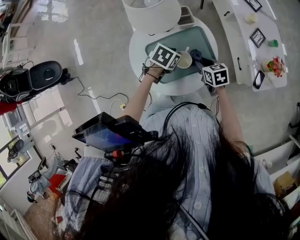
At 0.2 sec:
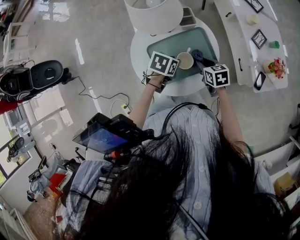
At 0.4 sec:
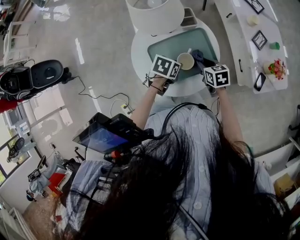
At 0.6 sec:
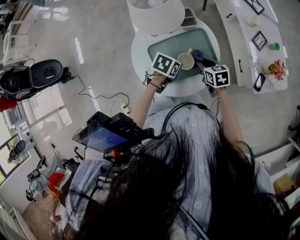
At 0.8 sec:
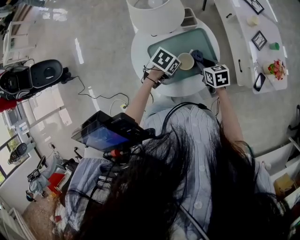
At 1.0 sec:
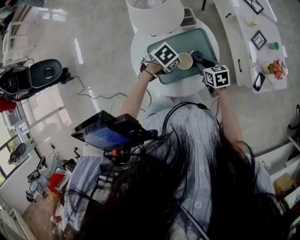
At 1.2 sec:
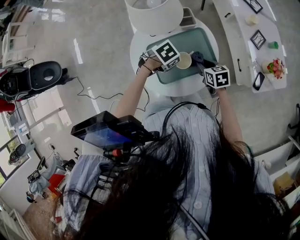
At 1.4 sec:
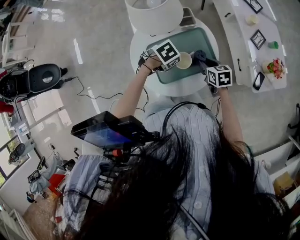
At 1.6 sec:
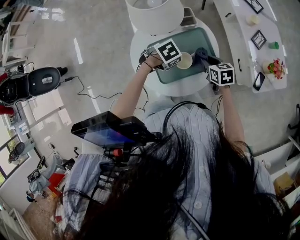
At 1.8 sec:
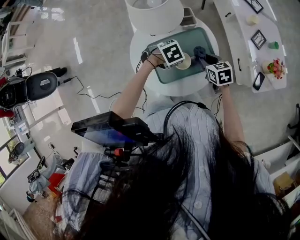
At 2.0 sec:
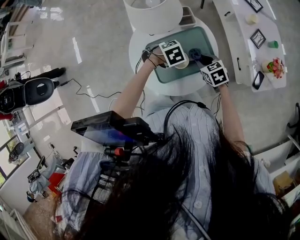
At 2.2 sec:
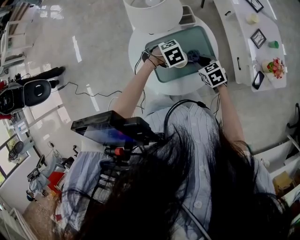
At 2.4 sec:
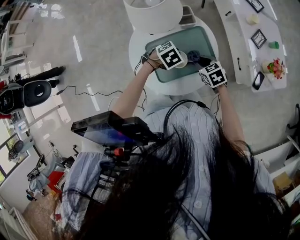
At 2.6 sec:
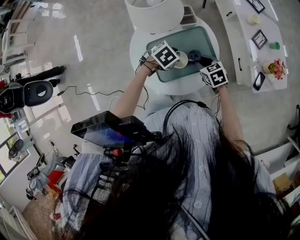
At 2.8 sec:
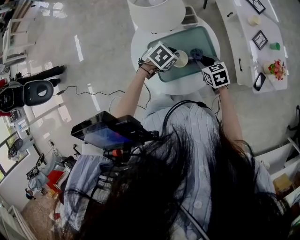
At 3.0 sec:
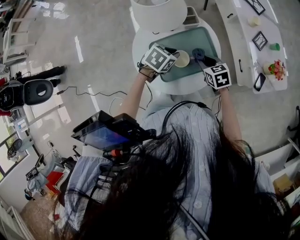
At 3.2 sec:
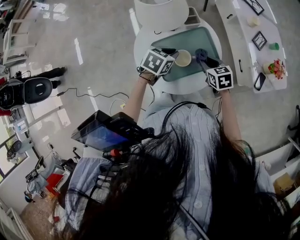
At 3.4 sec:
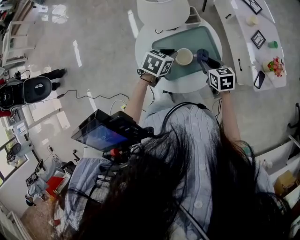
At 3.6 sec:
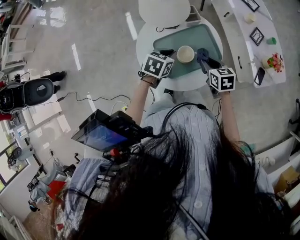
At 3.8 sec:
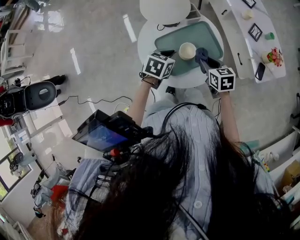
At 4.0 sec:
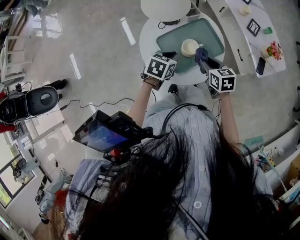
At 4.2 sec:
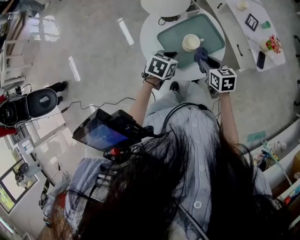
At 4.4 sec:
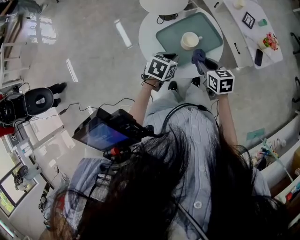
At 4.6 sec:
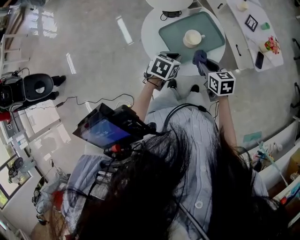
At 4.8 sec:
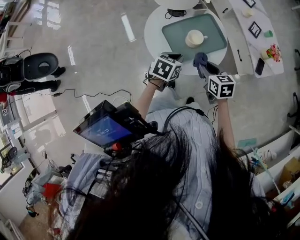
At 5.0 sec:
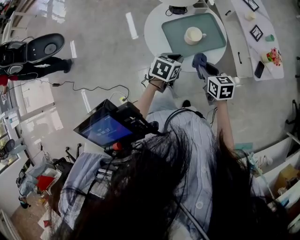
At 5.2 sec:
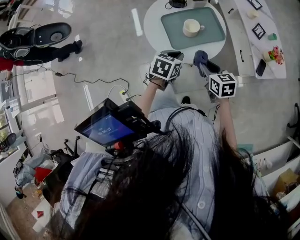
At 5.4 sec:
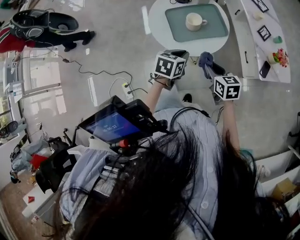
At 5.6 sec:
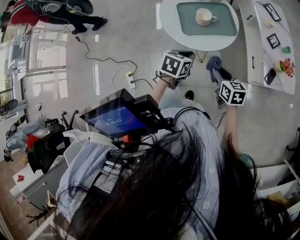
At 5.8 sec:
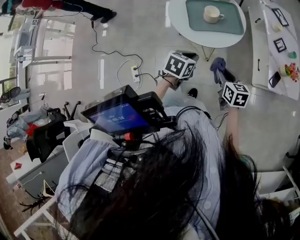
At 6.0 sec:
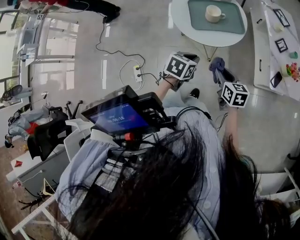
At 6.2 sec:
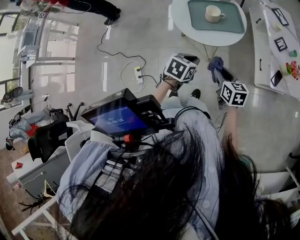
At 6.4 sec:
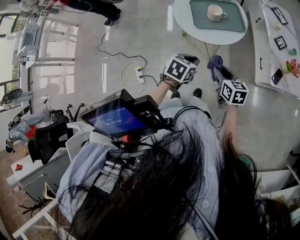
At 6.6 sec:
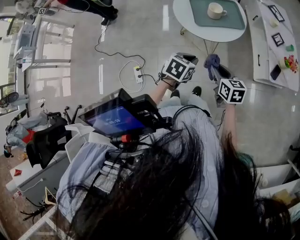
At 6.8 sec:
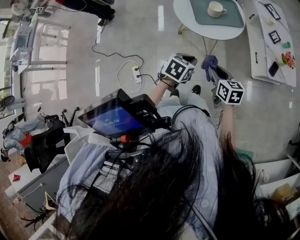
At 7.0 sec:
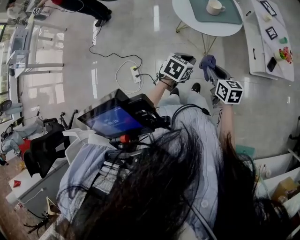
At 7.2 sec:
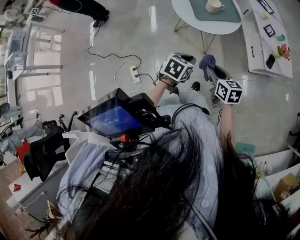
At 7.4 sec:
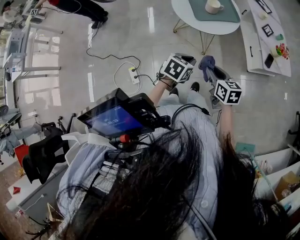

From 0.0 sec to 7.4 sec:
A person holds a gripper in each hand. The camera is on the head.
From 0.0 sec to 1.4 sec: The left gripper swivels roughly 30 degrees.
From 1.4 sec to 3.0 sec: The left gripper turns by about 20 degrees.
From 3.0 sec to 4.4 sec: The grippers both shift backward by roughly 10 cm. The right gripper turns by roughly 20 degrees.
From 4.4 sec to 6.0 sec: The two grippers go about 25 cm backward and to the right. The left gripper swivels some 30 degrees.
From 6.0 sec to 7.4 sec: Both grippers move backward and to the left, about 15 cm.

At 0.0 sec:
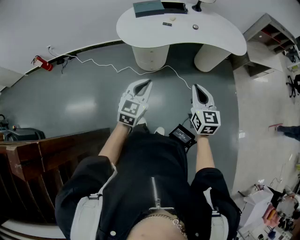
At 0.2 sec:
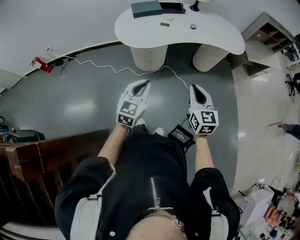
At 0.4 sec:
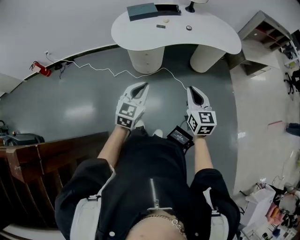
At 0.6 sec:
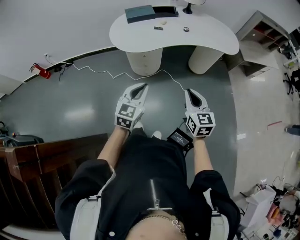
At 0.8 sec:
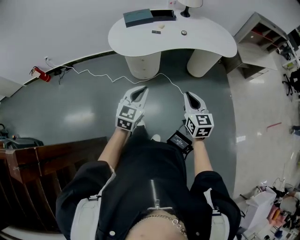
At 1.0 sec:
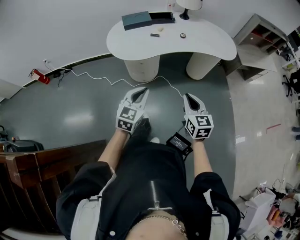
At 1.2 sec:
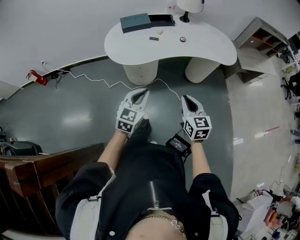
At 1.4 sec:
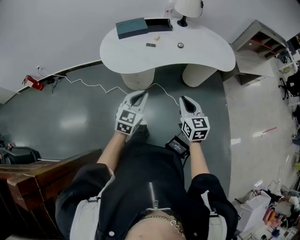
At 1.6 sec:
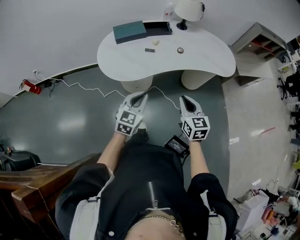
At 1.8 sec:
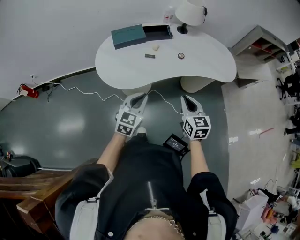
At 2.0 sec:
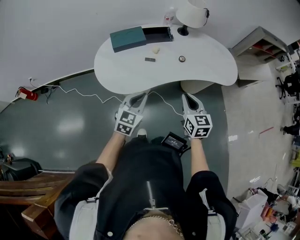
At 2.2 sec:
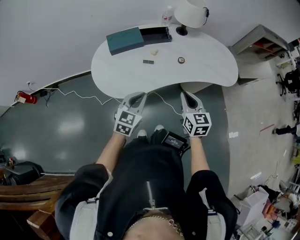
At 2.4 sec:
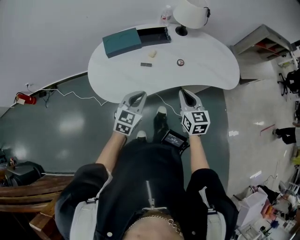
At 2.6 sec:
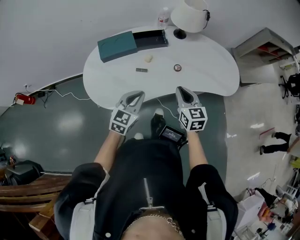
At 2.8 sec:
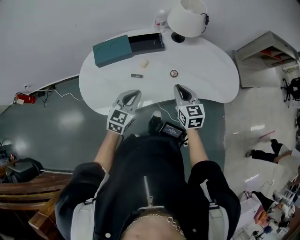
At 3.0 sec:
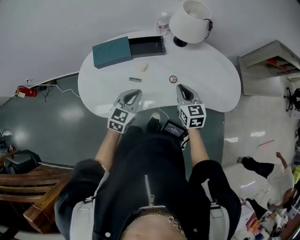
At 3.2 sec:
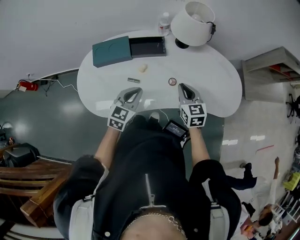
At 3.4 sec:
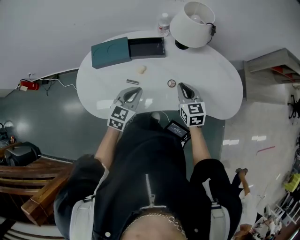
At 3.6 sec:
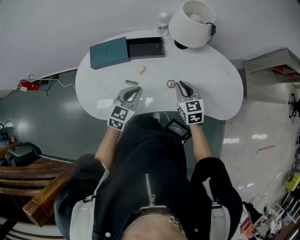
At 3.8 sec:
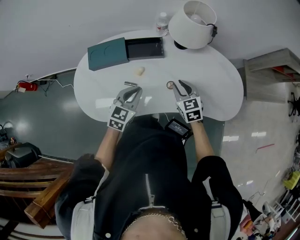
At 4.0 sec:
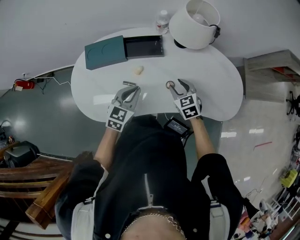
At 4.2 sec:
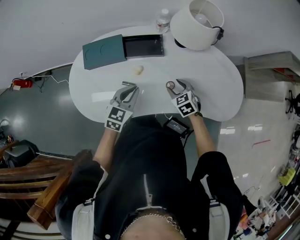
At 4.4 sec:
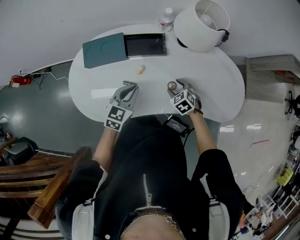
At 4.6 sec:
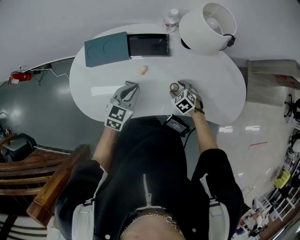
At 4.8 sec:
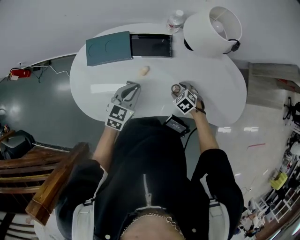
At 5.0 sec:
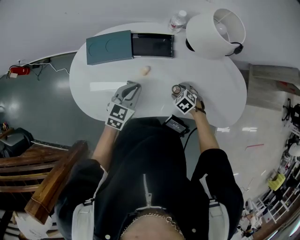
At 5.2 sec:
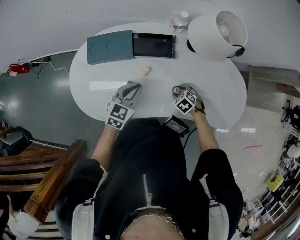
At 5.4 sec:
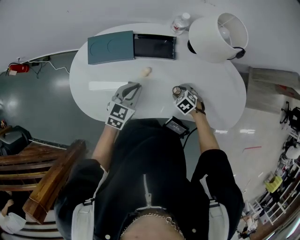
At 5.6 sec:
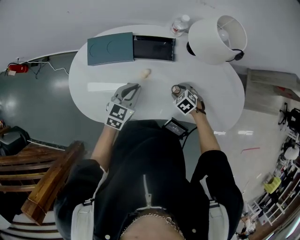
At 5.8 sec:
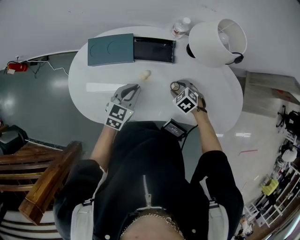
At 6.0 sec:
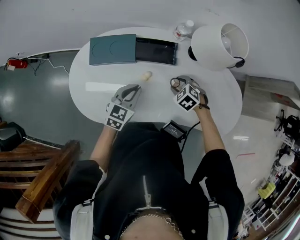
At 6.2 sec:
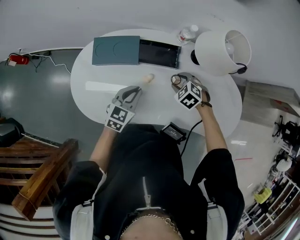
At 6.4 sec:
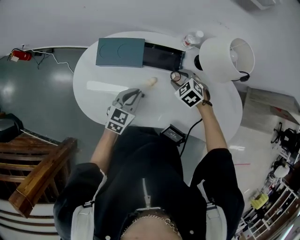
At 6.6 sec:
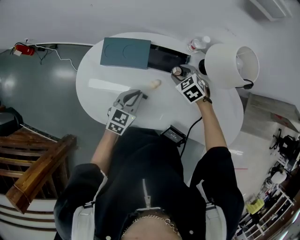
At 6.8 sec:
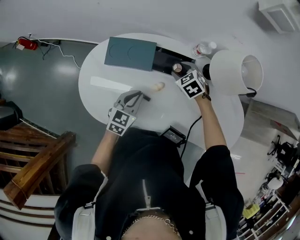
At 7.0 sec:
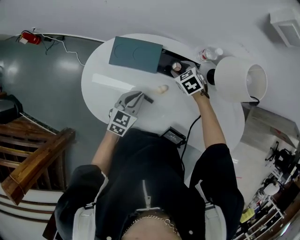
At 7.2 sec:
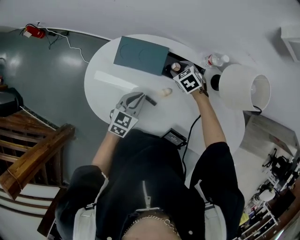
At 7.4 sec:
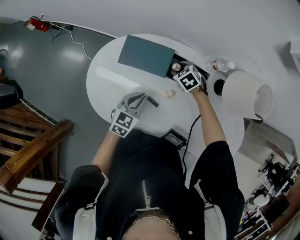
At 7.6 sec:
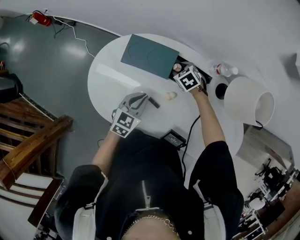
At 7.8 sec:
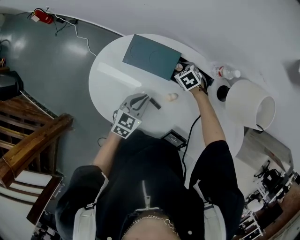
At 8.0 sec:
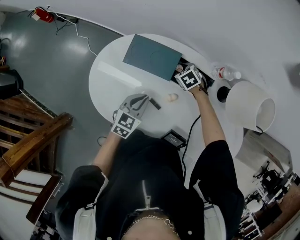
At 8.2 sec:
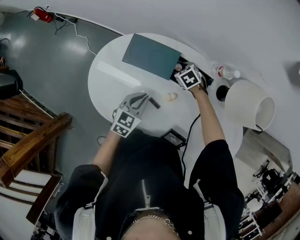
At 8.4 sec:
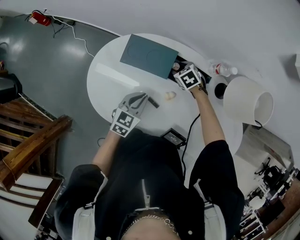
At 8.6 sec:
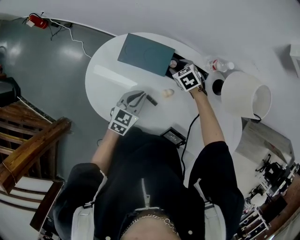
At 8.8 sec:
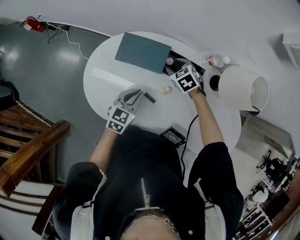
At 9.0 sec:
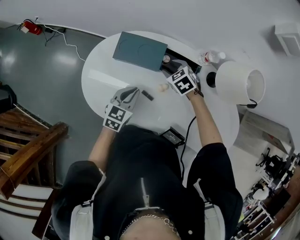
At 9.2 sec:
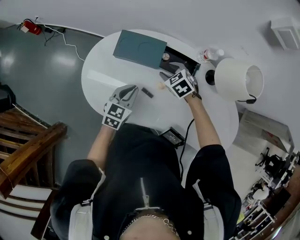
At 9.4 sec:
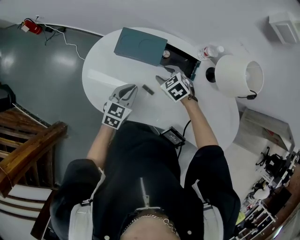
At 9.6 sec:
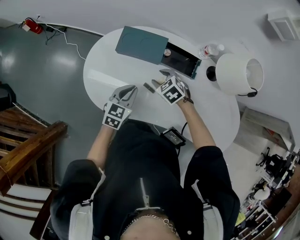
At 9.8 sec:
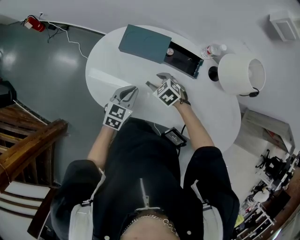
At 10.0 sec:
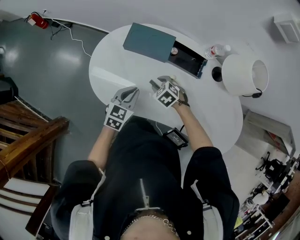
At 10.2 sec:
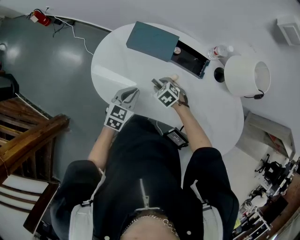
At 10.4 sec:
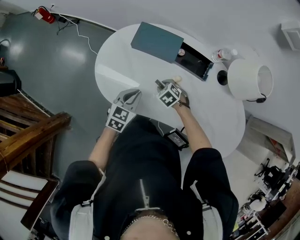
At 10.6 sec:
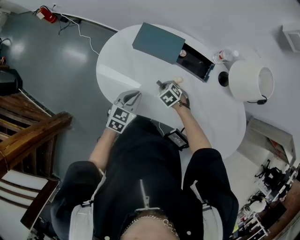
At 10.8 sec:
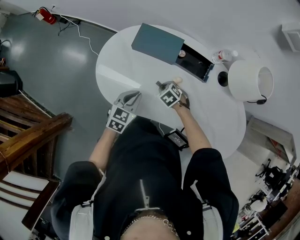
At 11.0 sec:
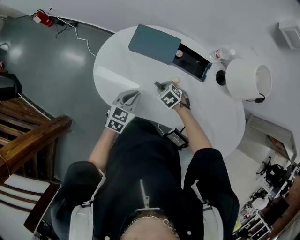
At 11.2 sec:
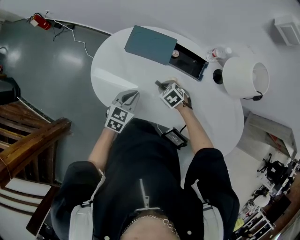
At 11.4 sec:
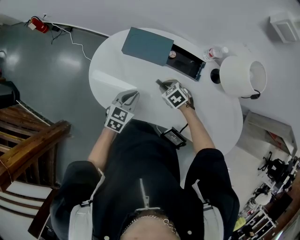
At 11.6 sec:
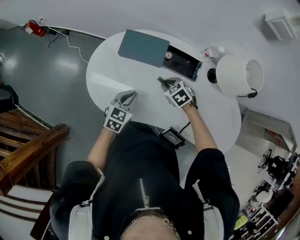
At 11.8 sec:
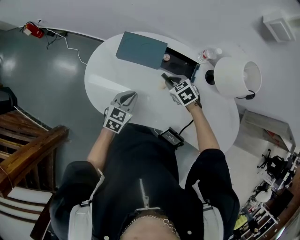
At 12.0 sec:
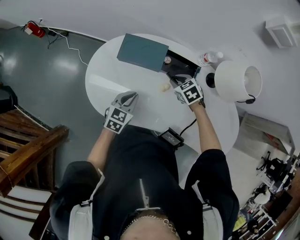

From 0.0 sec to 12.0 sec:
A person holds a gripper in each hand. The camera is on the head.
From 0.0 sec to 1.6 sec: Both grippers move forward, approximately 20 cm.
From 1.6 sec to 3.0 sec: The grippers both shift forward by approximately 35 cm.
From 3.0 sec to 4.4 sec: The left gripper heads forward, covering roughly 10 cm, while the right gripper shifts approximately 20 cm downward and forward, tips its fingers downward by some 30 degrees, and opens.
From 4.4 sec to 6.0 sec: The right gripper reaches approximately 5 cm downward, then returns.
From 6.0 sec to 7.6 sec: The right gripper goes about 25 cm forward and to the left; the left gripper is displaced to the left by some 10 cm.
From 7.6 sec to 9.0 sec: The right gripper moves upward, some 10 cm.
From 9.0 sec to 10.4 sec: The right gripper moves backward, downward and to the left, about 20 cm, and closes. The left gripper moves backward and to the left, approximately 10 cm.
From 10.4 sec to 12.0 sec: The left gripper shifts by roughly 5 cm. Meanwhile the right gripper shifts approximately 15 cm to the right, upward and forward.

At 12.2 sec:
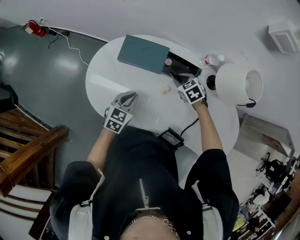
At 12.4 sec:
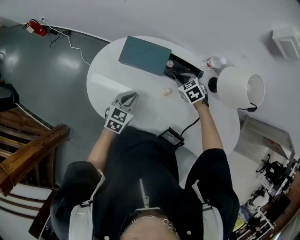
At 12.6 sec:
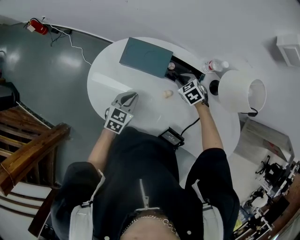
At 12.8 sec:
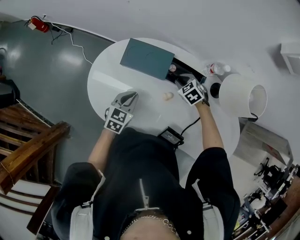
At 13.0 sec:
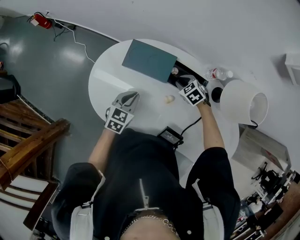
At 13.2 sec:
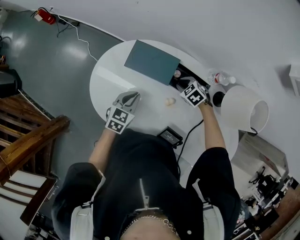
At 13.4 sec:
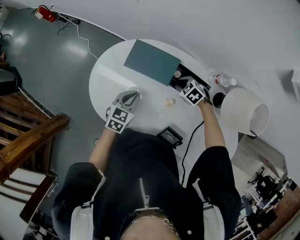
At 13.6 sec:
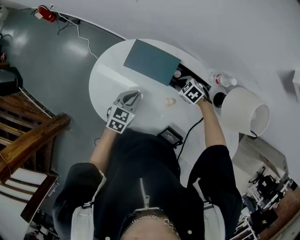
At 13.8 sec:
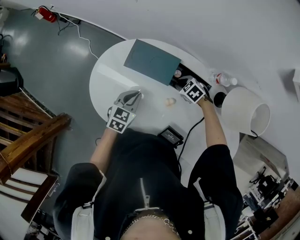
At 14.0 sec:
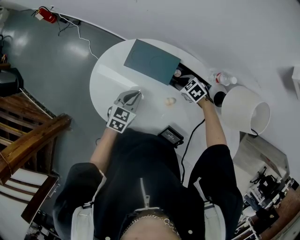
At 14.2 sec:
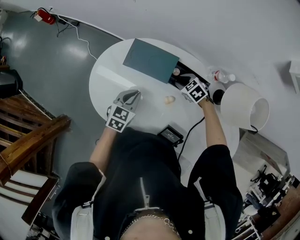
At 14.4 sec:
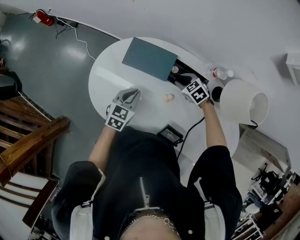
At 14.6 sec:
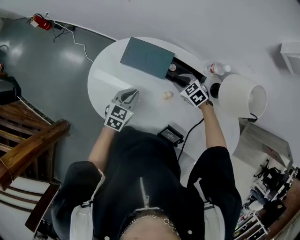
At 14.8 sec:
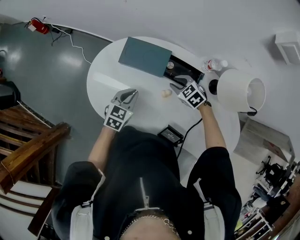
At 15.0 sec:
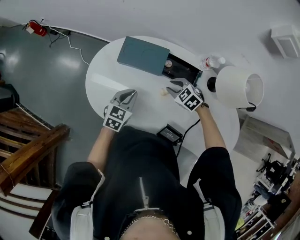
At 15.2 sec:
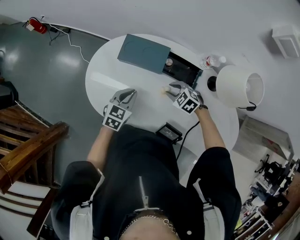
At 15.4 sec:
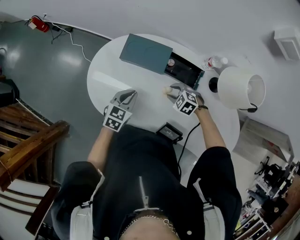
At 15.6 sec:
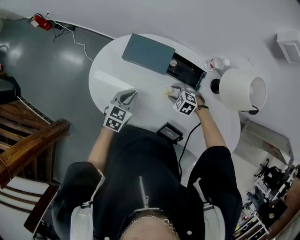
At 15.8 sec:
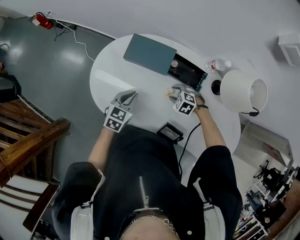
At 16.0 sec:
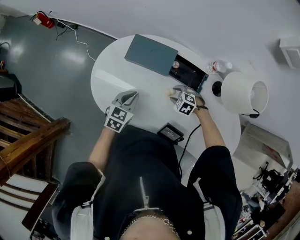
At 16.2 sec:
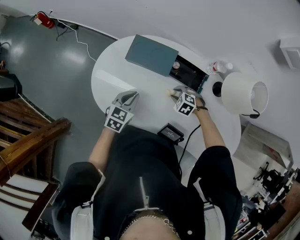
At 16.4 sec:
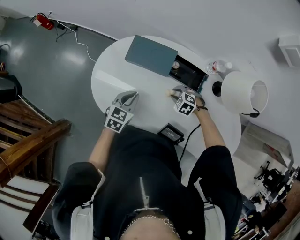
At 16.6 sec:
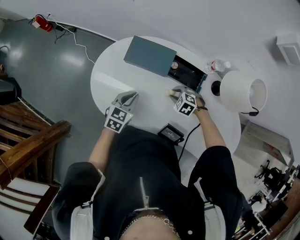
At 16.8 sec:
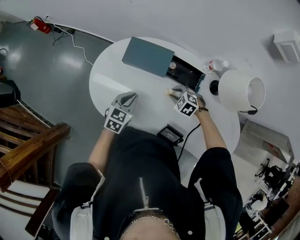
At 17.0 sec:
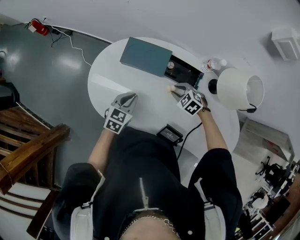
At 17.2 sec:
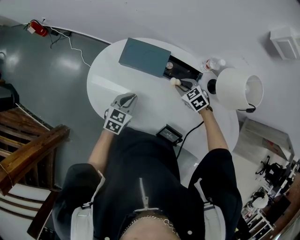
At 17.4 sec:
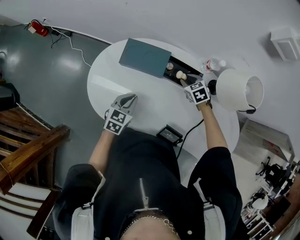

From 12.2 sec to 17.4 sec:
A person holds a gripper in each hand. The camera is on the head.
From 12.2 sec to 14.0 sec: The right gripper goes approximately 10 cm downward, and turns by about 20 degrees; the left gripper travels forward by some 5 cm.
From 14.0 sec to 15.6 sec: The right gripper goes roughly 10 cm backward, while the left gripper shifts by approximately 5 cm.
From 15.6 sec to 17.4 sec: The right gripper shifts approximately 15 cm to the right and forward, and changes its angle by some 40 degrees.
